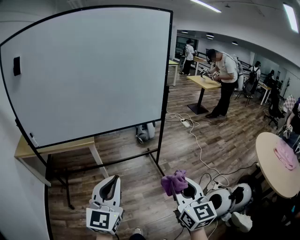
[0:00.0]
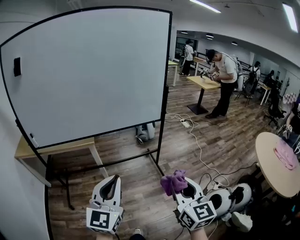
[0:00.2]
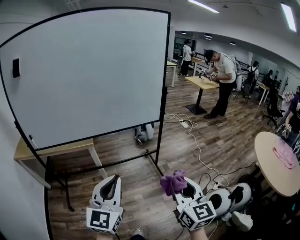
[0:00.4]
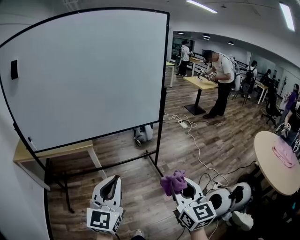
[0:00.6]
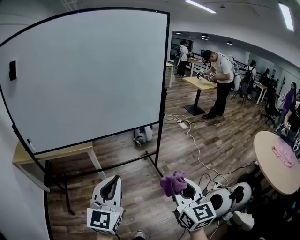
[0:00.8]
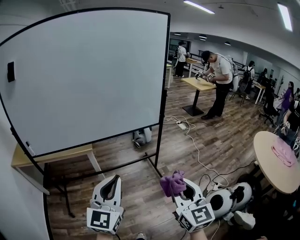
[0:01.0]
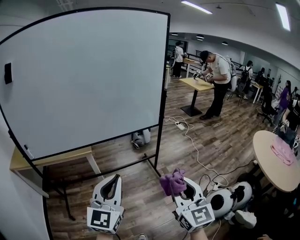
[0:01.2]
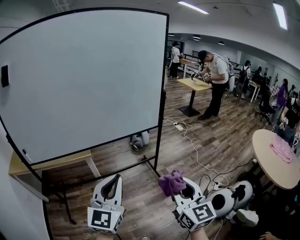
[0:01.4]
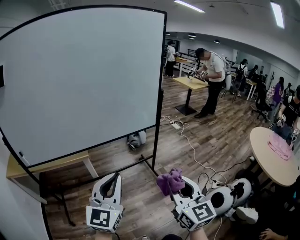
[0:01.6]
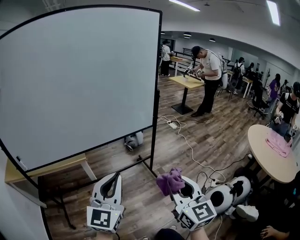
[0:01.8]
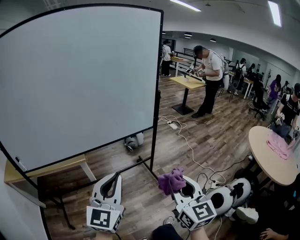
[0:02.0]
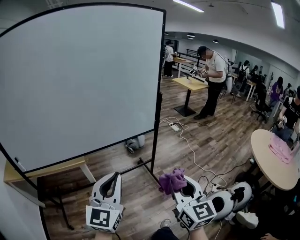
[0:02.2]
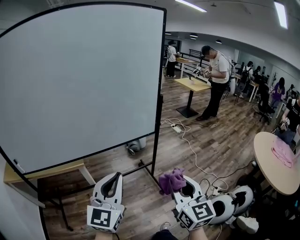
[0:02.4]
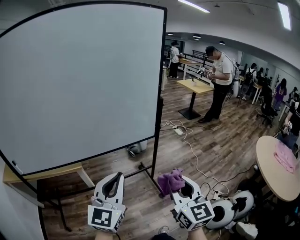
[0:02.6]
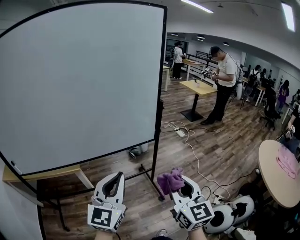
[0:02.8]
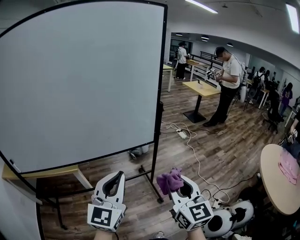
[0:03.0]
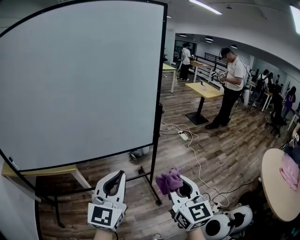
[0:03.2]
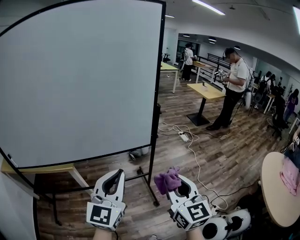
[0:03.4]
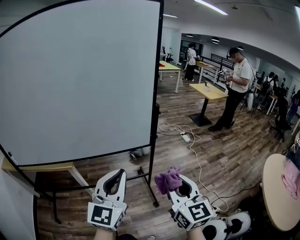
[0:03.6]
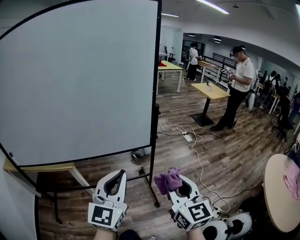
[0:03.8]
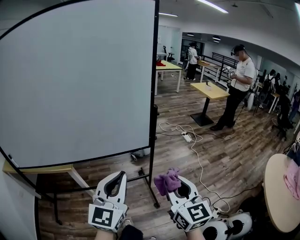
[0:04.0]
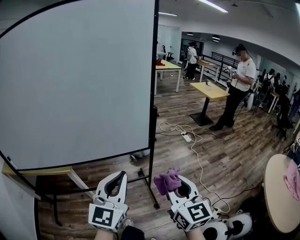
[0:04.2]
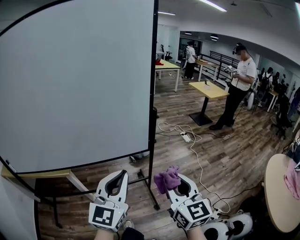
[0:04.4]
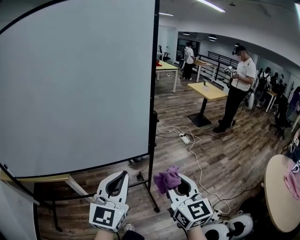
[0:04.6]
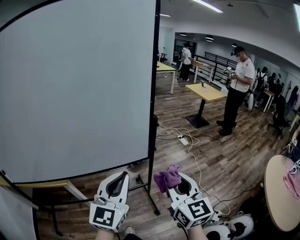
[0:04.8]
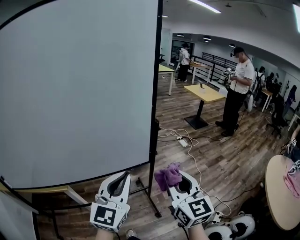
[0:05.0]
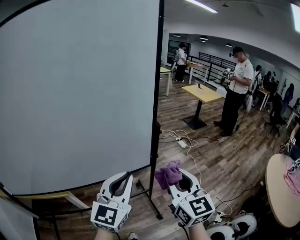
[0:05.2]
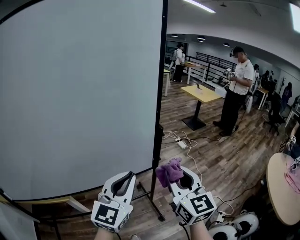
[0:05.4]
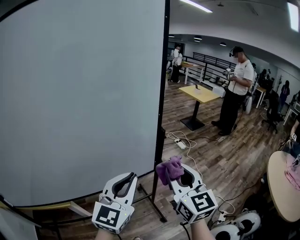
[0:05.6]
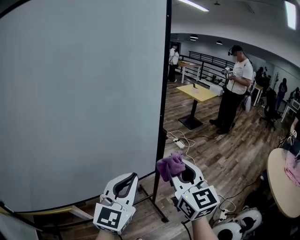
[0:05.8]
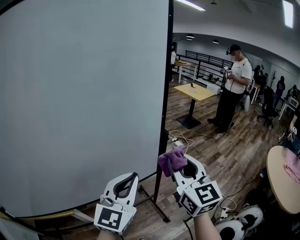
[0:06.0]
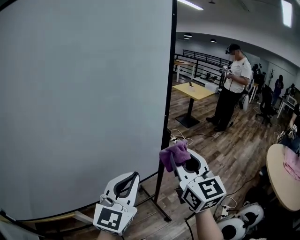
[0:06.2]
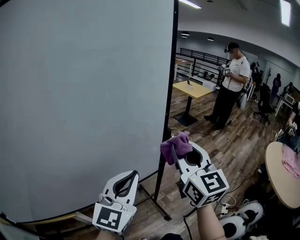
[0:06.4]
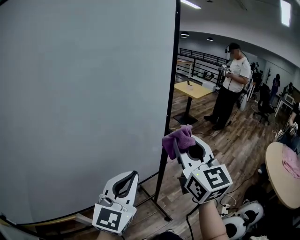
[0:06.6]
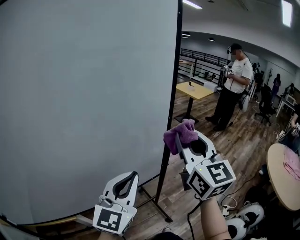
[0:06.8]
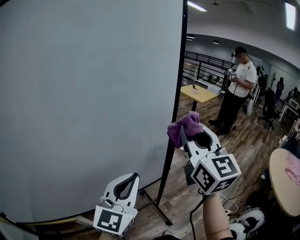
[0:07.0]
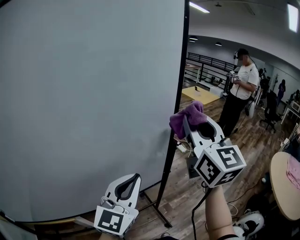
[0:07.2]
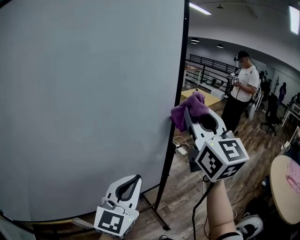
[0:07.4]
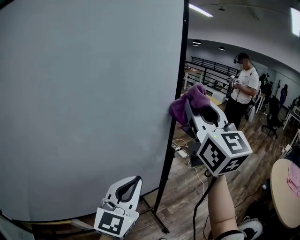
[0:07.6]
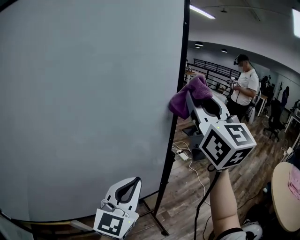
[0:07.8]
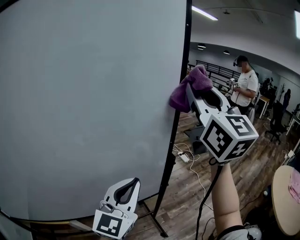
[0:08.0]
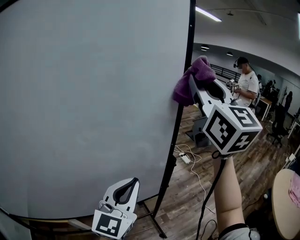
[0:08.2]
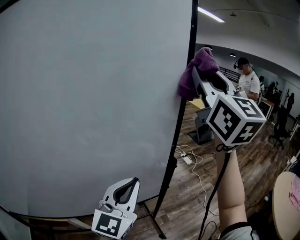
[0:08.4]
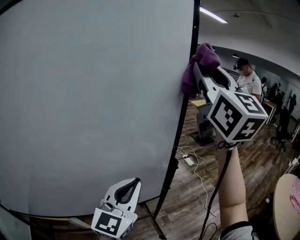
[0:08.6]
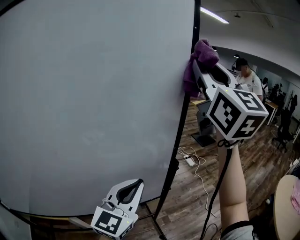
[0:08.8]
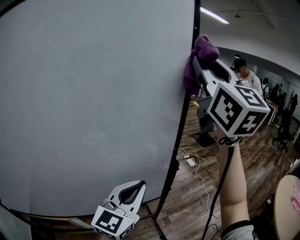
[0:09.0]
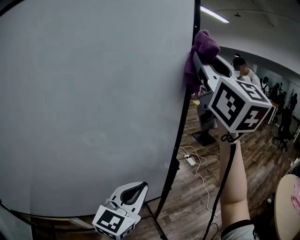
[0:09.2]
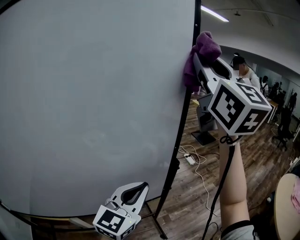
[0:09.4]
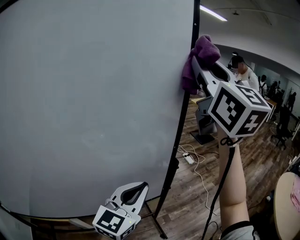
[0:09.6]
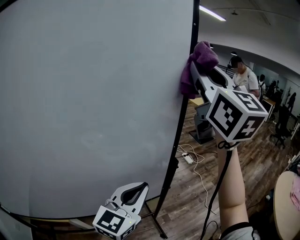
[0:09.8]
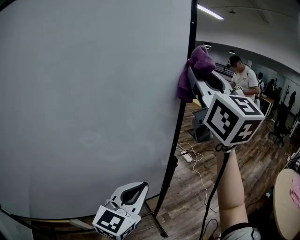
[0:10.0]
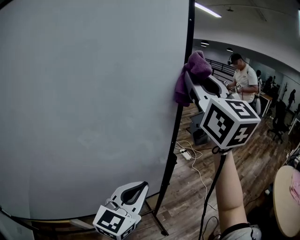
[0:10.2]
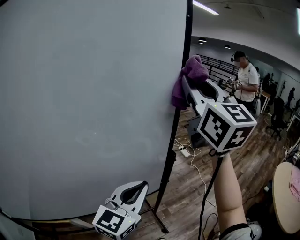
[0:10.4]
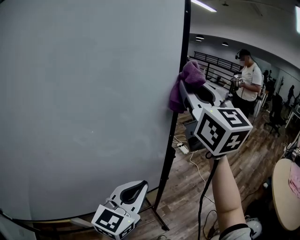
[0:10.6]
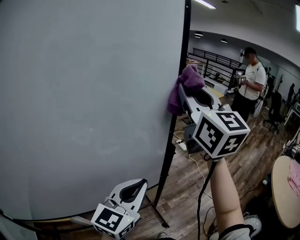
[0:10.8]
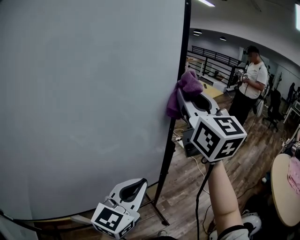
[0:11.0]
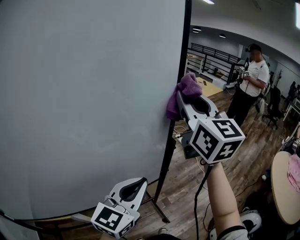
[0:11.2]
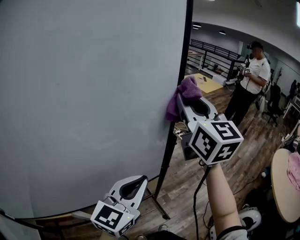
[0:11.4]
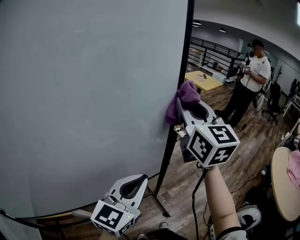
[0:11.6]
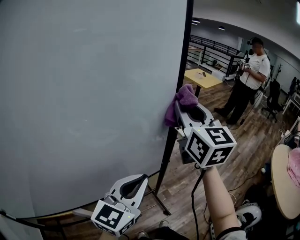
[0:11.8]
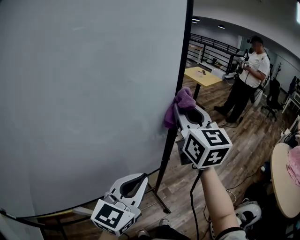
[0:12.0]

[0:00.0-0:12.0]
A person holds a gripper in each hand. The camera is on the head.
0:00.0 to 0:01.6: The right gripper heads to the left and forward, covering approximately 10 cm; the left gripper shifts roughly 10 cm forward.
0:01.6 to 0:03.0: The two grippers go about 20 cm forward and to the right.
0:03.0 to 0:04.4: The right gripper is displaced forward and to the right by about 10 cm, while the left gripper moves to the right and forward, roughly 10 cm.
0:04.4 to 0:06.0: The right gripper heads forward, to the left and upward, covering roughly 20 cm, while the left gripper is displaced forward and to the left by roughly 15 cm.
0:06.0 to 0:07.6: The right gripper moves upward and forward, approximately 25 cm. Meanwhile the left gripper moves forward, about 5 cm.
0:07.6 to 0:09.0: The right gripper shifts roughly 15 cm upward.
0:09.0 to 0:10.4: The right gripper shifts some 10 cm downward.
0:10.4 to 0:12.0: The right gripper moves downward, about 15 cm.

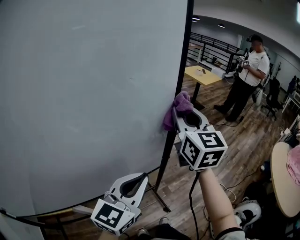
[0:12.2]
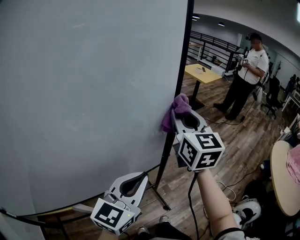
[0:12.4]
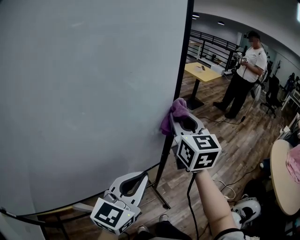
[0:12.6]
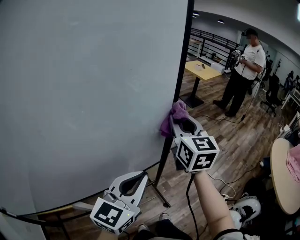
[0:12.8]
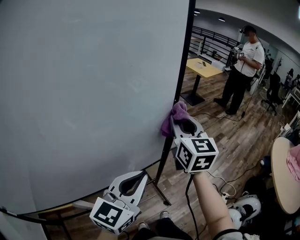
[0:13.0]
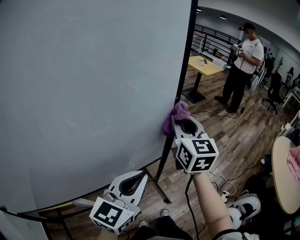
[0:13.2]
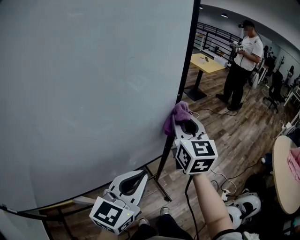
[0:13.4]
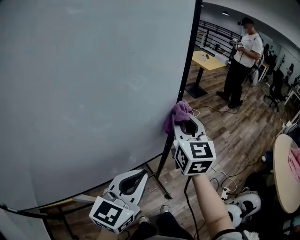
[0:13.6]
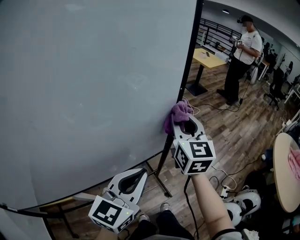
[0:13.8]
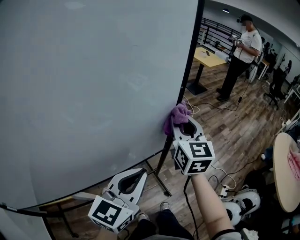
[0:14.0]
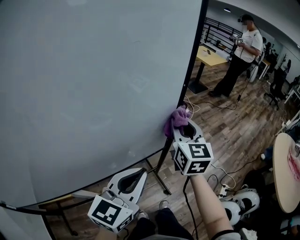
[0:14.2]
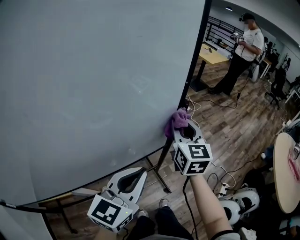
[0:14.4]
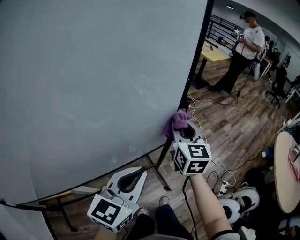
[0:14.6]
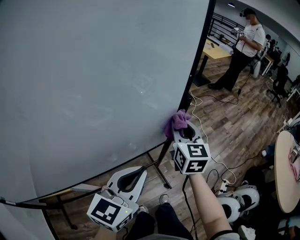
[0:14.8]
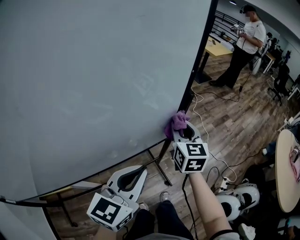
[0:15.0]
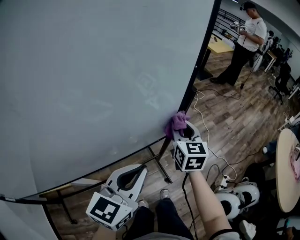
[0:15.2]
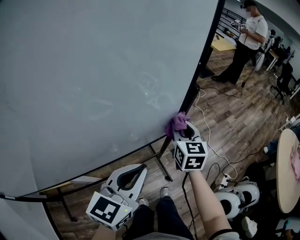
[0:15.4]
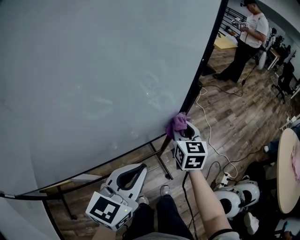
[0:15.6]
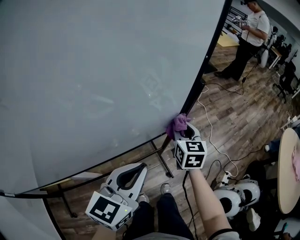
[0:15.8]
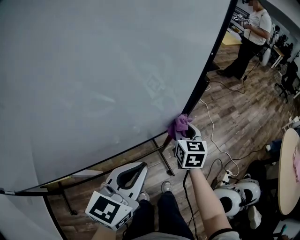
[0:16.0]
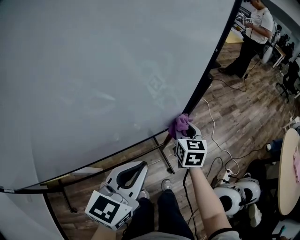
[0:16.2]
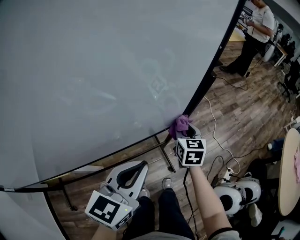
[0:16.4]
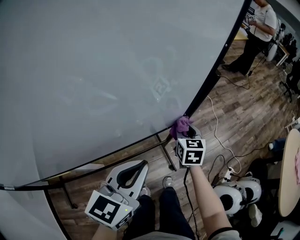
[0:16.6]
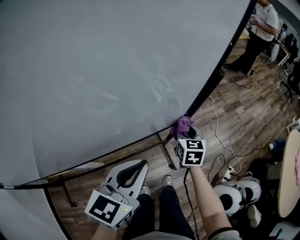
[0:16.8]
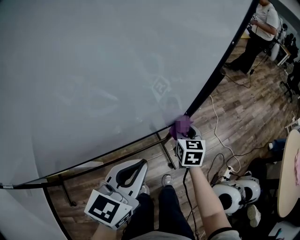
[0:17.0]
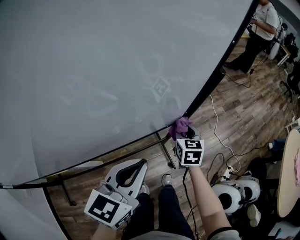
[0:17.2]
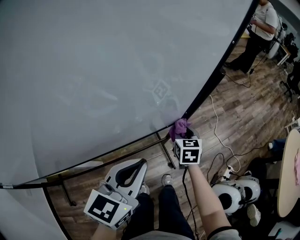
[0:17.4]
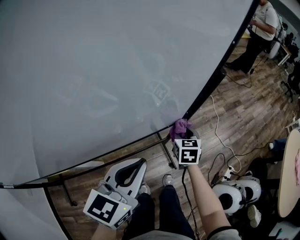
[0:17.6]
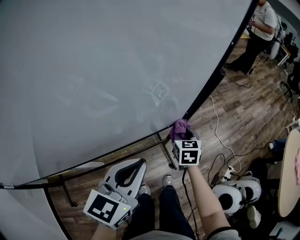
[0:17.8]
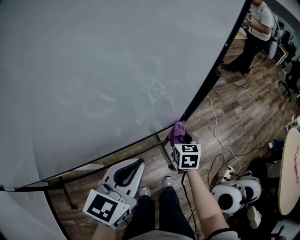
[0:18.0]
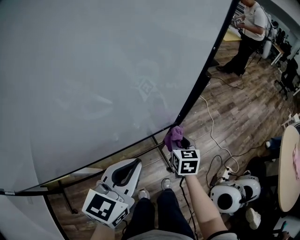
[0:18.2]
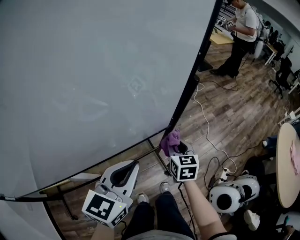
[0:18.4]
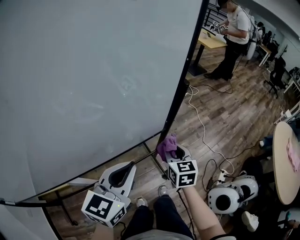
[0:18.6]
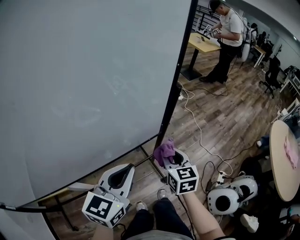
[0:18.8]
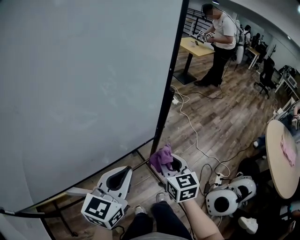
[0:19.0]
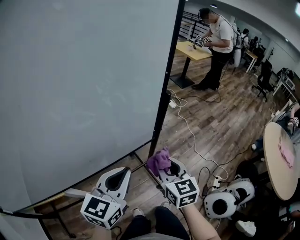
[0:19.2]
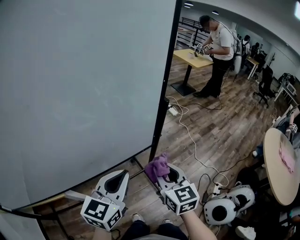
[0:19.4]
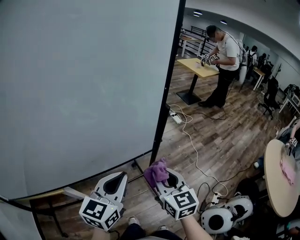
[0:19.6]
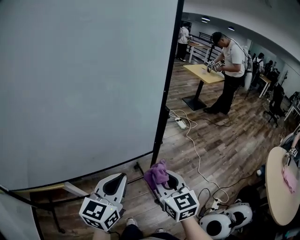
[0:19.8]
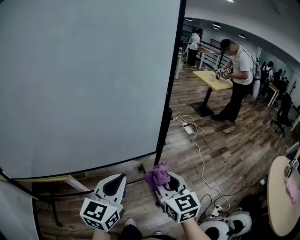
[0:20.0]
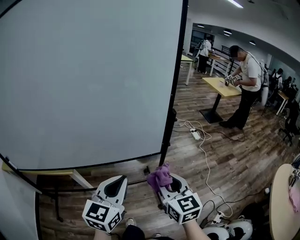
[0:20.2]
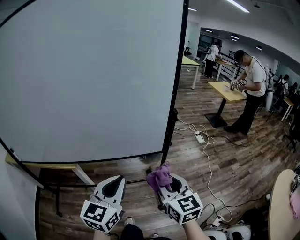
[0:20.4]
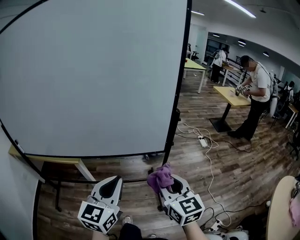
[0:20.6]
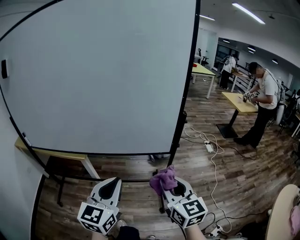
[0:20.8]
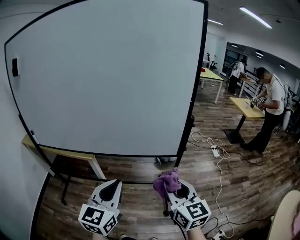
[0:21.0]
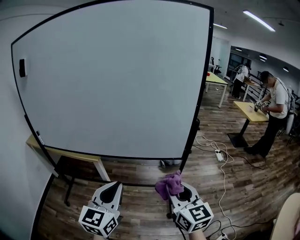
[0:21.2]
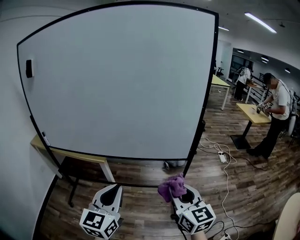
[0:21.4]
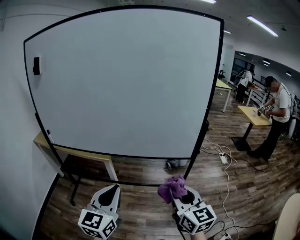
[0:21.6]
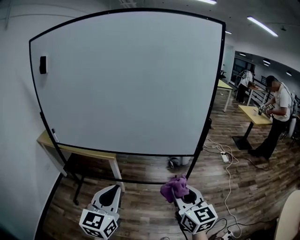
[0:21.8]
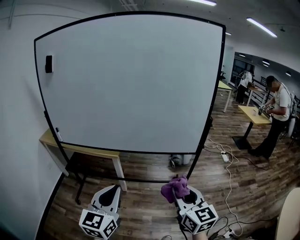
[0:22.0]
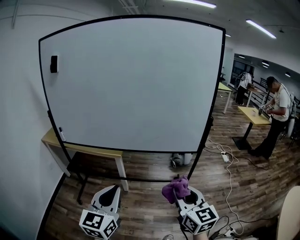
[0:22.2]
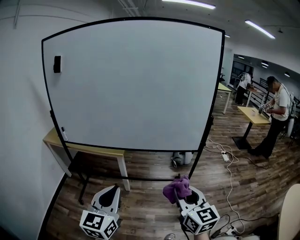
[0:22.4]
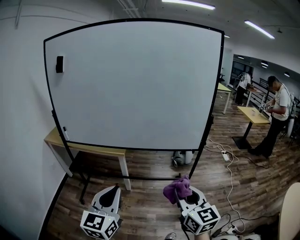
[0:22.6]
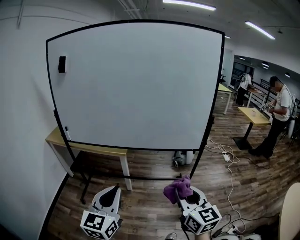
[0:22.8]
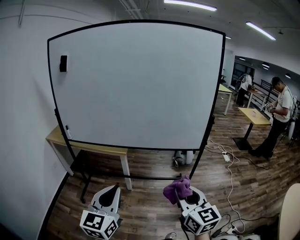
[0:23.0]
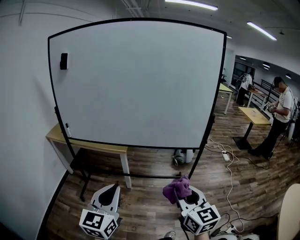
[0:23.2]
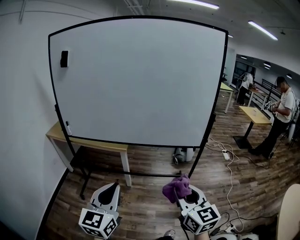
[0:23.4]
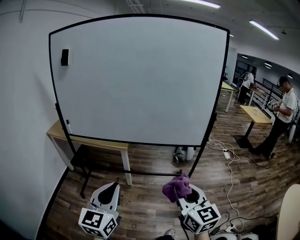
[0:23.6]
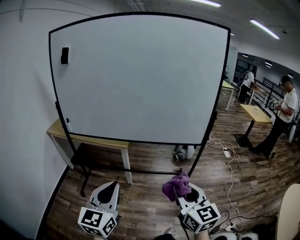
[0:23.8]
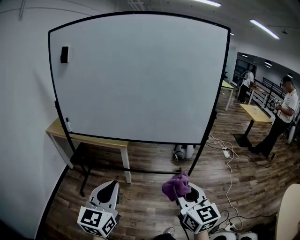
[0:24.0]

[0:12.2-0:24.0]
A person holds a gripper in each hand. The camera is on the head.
0:12.2 to 0:13.6: The right gripper heads downward, covering approximately 10 cm.
0:13.6 to 0:15.2: The right gripper goes roughly 15 cm downward.
0:15.2 to 0:16.6: The right gripper moves downward, roughly 15 cm.
0:16.6 to 0:18.2: There are only small adjustments of the grippers.
0:18.2 to 0:19.6: The right gripper is displaced upward and backward by about 25 cm, and rotates about 20 degrees. Meanwhile the left gripper shifts by about 5 cm.
0:19.6 to 0:21.0: The right gripper moves some 15 cm, and turns by approximately 30 degrees. Meanwhile the left gripper shifts by roughly 20 cm, and swivels about 40 degrees.
0:21.0 to 0:22.6: The right gripper is displaced backward and to the left by approximately 25 cm; the left gripper shifts some 25 cm to the left and backward.
0:22.6 to 0:24.0: The grippers make only small movements.
